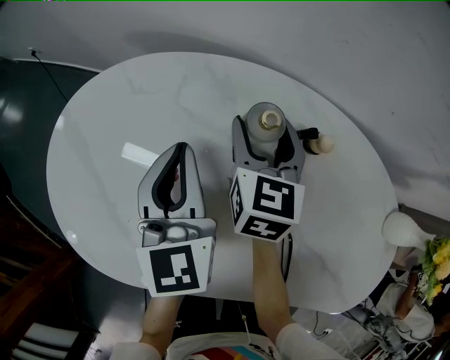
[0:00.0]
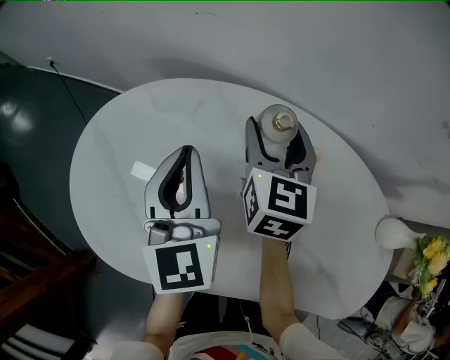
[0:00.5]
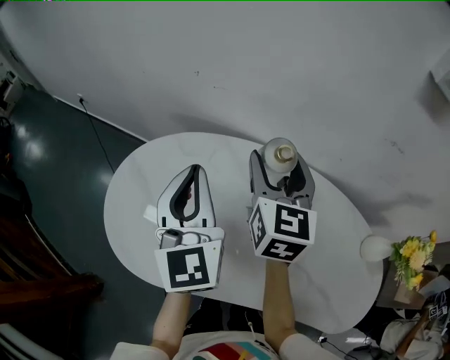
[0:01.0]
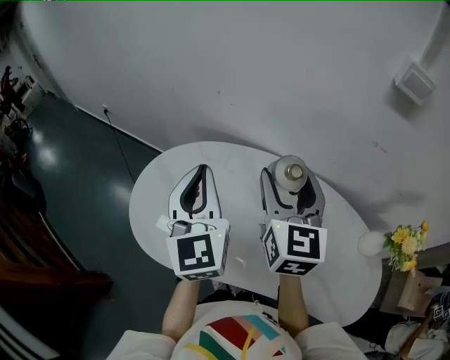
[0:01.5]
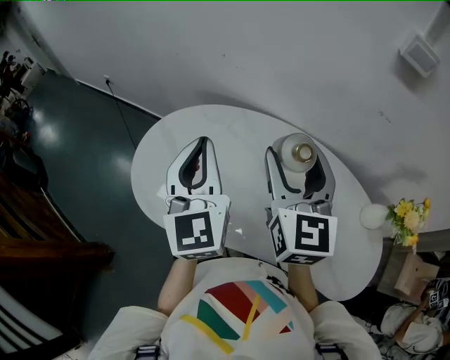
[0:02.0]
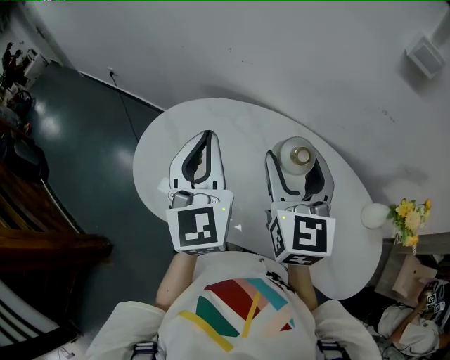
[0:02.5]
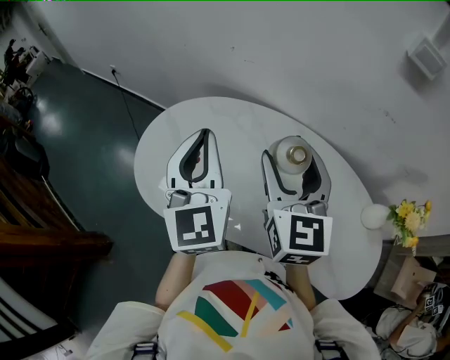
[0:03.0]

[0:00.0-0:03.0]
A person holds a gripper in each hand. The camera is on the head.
0:00.0 to 0:01.5: Both grippers move upward and backward, some 30 cm. The right gripper turns by roughly 20 degrees.
0:01.5 to 0:03.0: Both grippers move backward, roughly 5 cm.

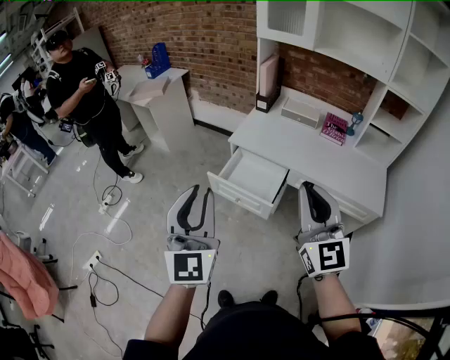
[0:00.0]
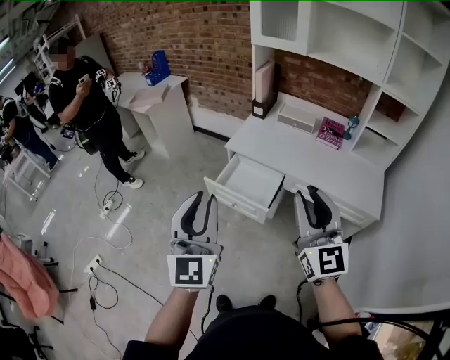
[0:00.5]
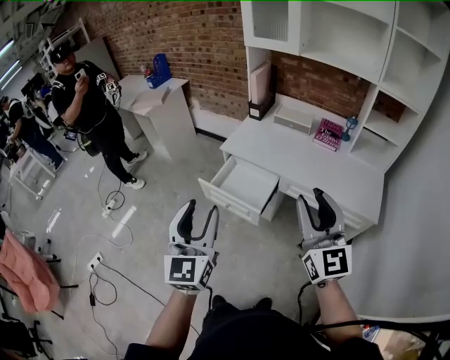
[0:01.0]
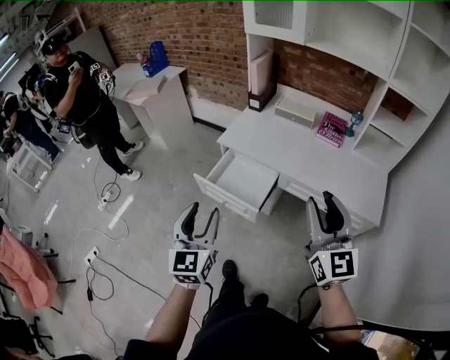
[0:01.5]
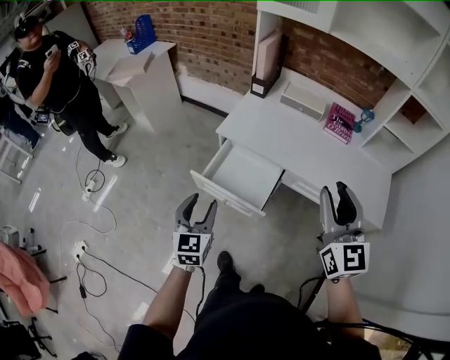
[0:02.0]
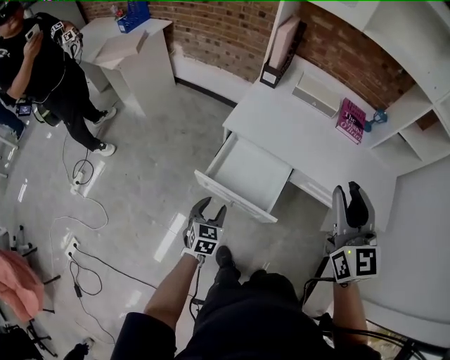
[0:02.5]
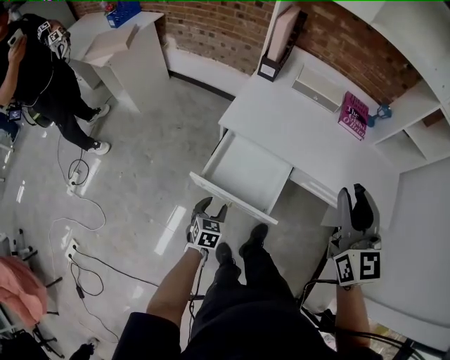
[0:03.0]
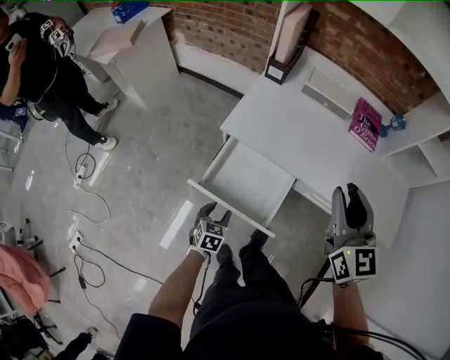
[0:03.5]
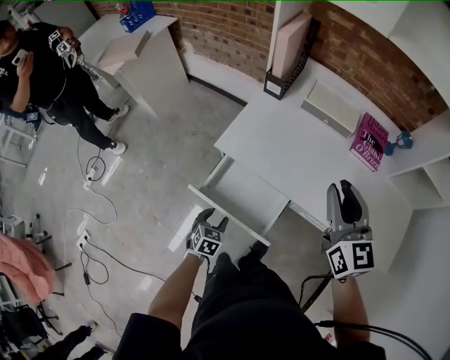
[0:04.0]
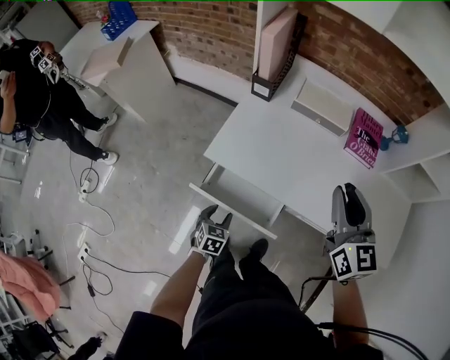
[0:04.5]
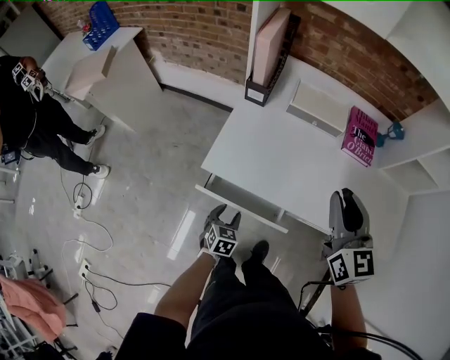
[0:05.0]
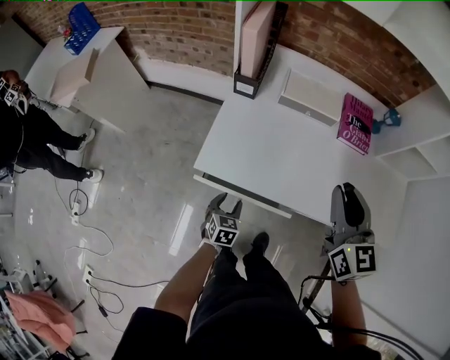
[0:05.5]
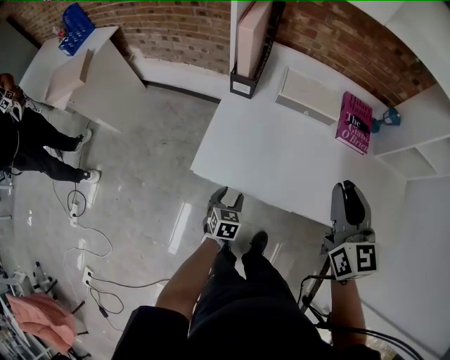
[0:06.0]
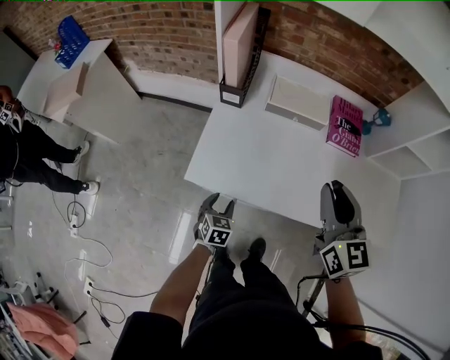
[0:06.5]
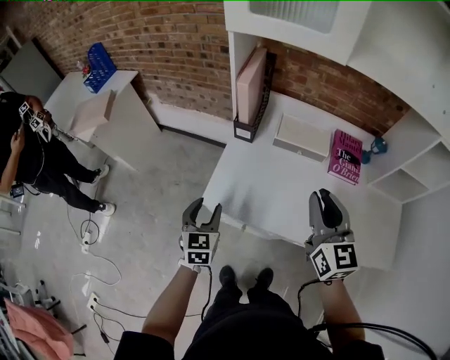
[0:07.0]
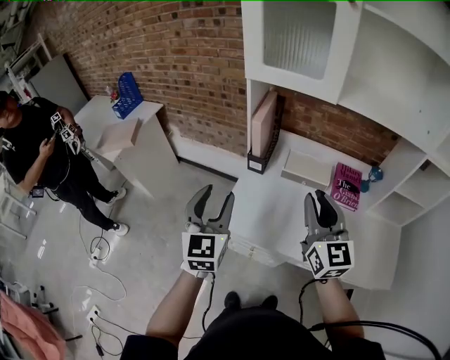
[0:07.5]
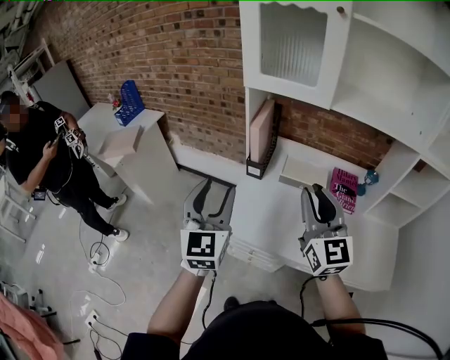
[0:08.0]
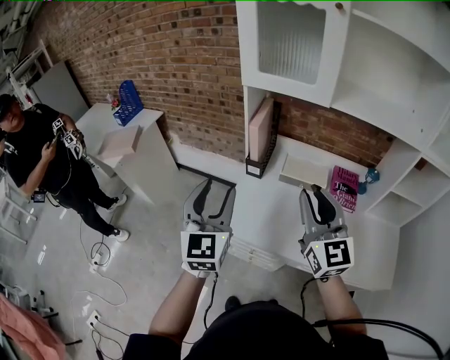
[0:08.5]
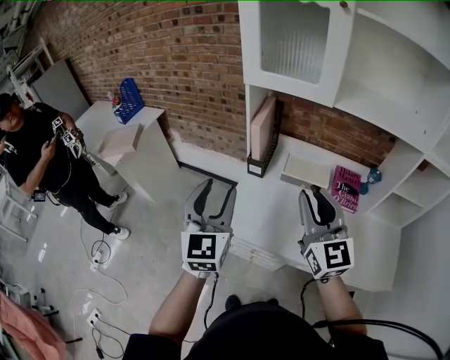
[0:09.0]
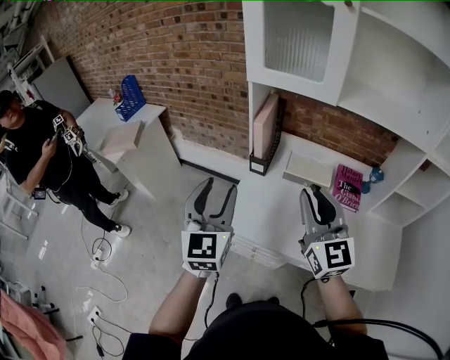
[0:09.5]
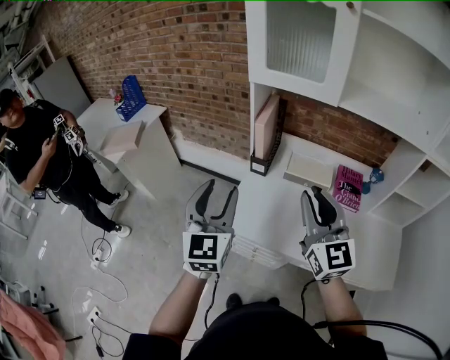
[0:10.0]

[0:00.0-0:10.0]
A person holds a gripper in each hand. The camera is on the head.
0:00.0 to 0:02.0: The right gripper travels forward, to the right and downward by roughly 20 cm, and opens, while the left gripper is displaced downward and forward by approximately 30 cm, turns by approximately 30 degrees, and opens.
0:02.0 to 0:04.0: The right gripper shifts approximately 25 cm forward. Meanwhile the left gripper heads downward and forward, covering roughly 30 cm, and tips its fingers downward by roughly 40 degrees.
0:04.0 to 0:06.0: The right gripper moves forward, about 5 cm. The left gripper goes approximately 20 cm forward.
0:06.0 to 0:08.0: The left gripper shifts roughly 50 cm upward, and tilts its fingers approximately 50 degrees upward. Meanwhile the right gripper is displaced upward and to the left by about 20 cm, and turns by approximately 20 degrees.
0:08.0 to 0:10.0: There are only small adjustments of the grippers.

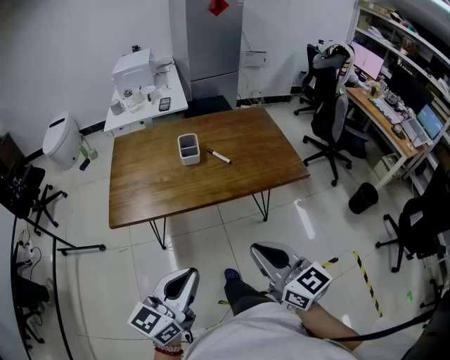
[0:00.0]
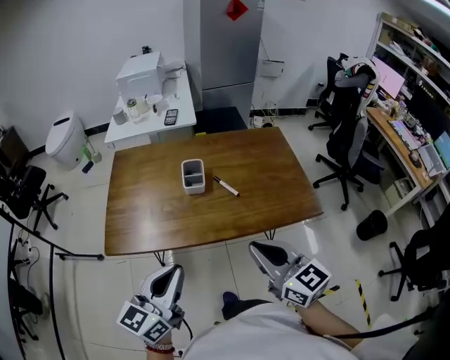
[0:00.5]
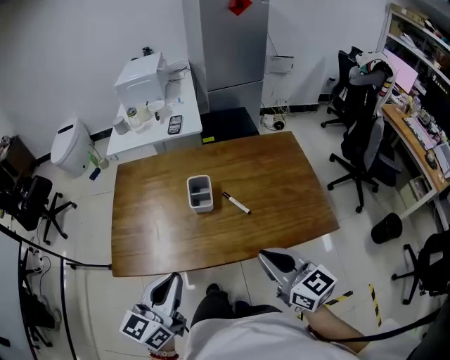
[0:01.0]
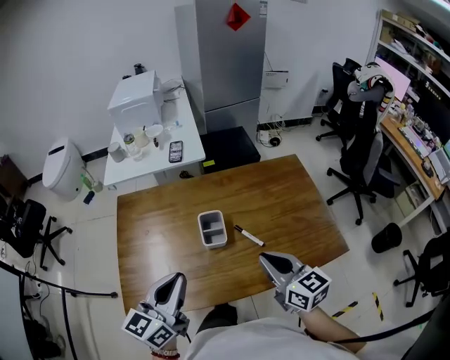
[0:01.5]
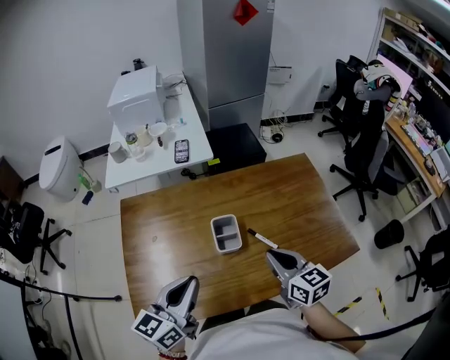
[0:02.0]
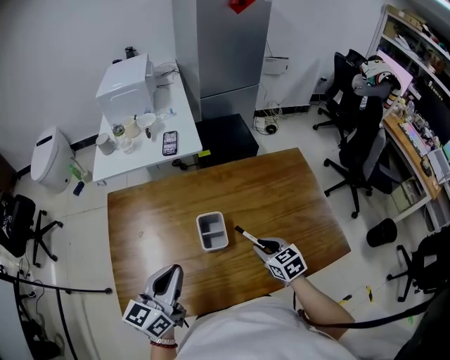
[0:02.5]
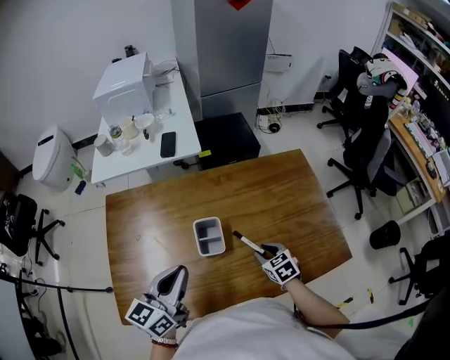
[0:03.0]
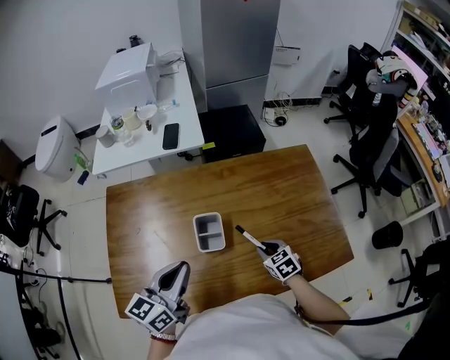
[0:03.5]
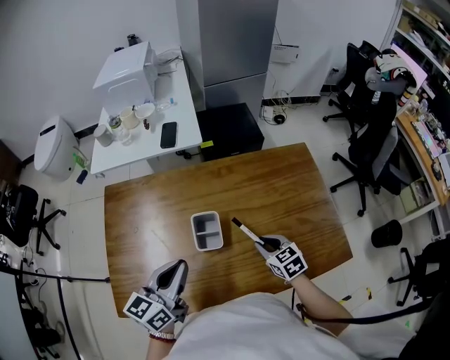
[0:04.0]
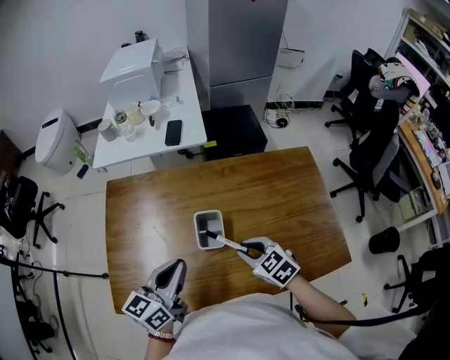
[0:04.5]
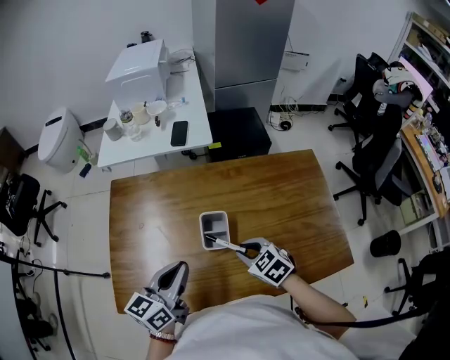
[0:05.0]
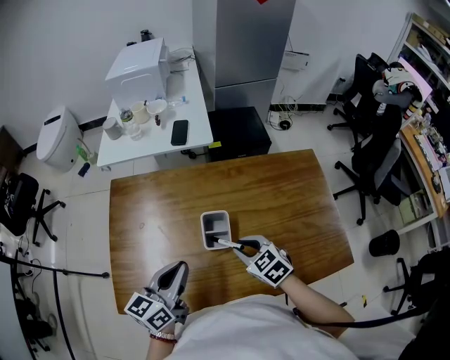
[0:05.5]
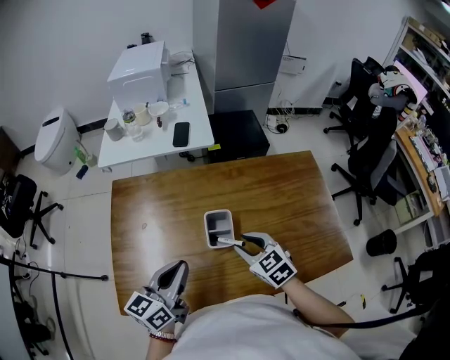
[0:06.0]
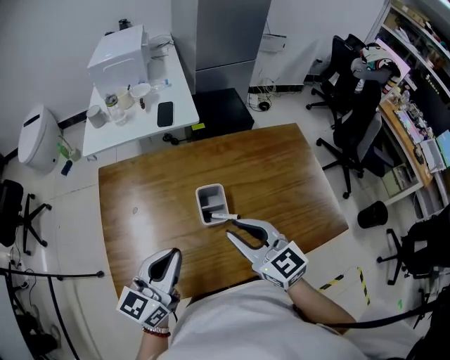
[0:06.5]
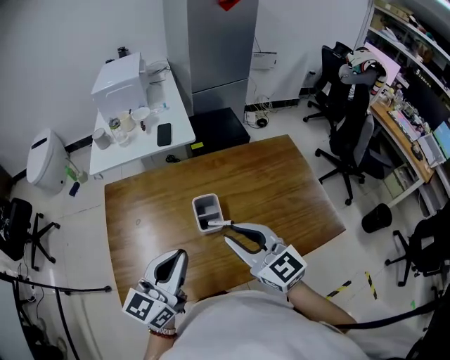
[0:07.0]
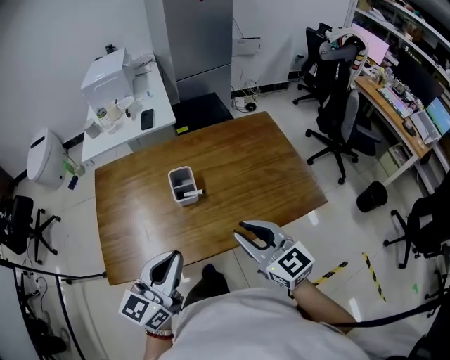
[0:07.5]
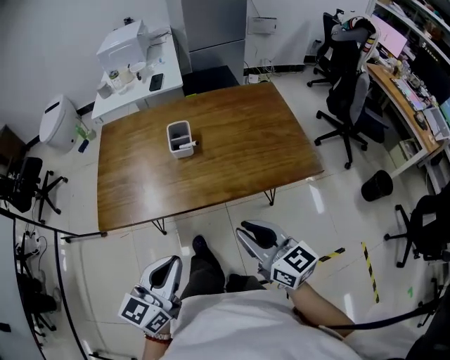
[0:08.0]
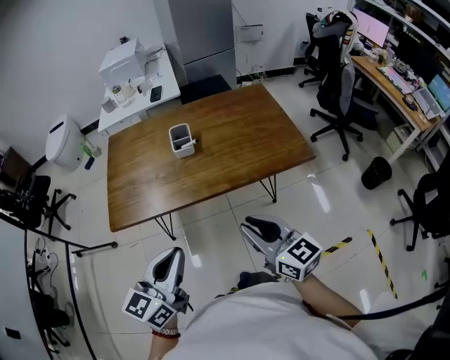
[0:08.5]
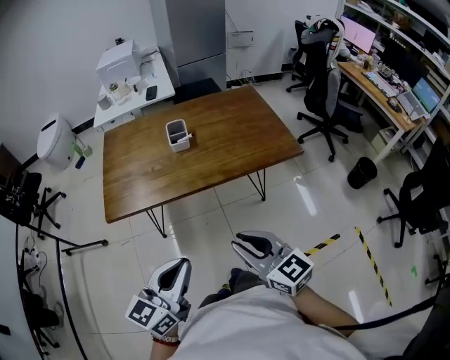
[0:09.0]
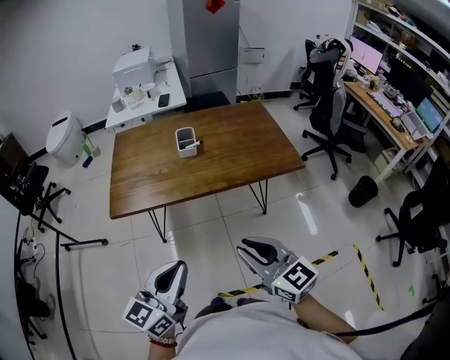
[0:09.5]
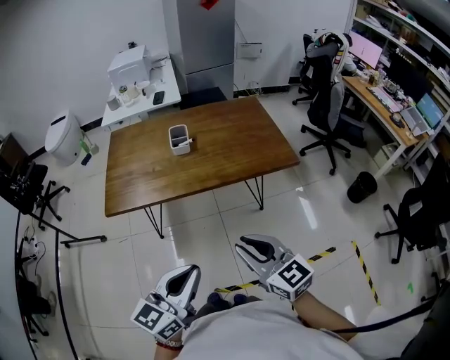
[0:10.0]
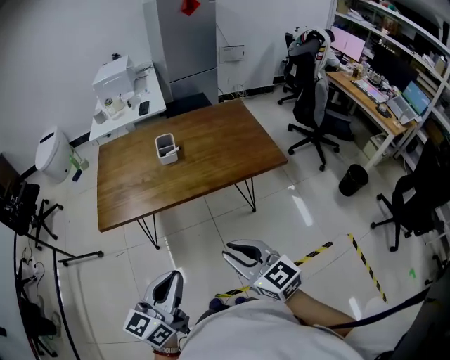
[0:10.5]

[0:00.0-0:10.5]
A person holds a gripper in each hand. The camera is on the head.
0:00.0 to 0:02.0: The pair of grippers is taken forward, approximately 40 cm.
0:02.0 to 0:04.0: The right gripper is displaced downward and forward by approximately 20 cm, and swivels approximately 30 degrees; the left gripper goes approximately 5 cm forward.
0:04.0 to 0:06.5: The right gripper heads upward and to the left, covering about 25 cm, and turns by approximately 30 degrees; the left gripper is displaced to the left by roughly 5 cm.
0:06.5 to 0:08.5: The left gripper moves backward, roughly 35 cm, while the right gripper travels backward and to the right by about 40 cm.
0:08.5 to 0:10.5: Both grippers move backward, about 10 cm.

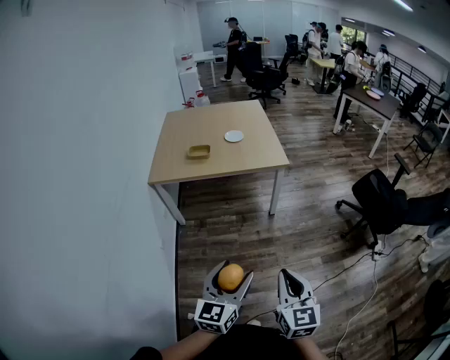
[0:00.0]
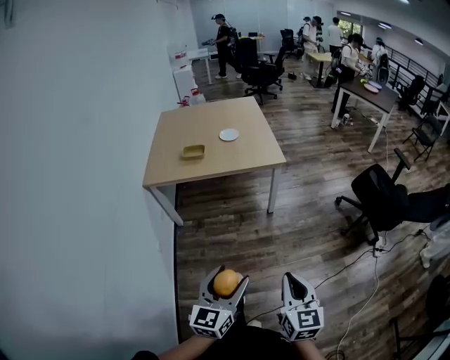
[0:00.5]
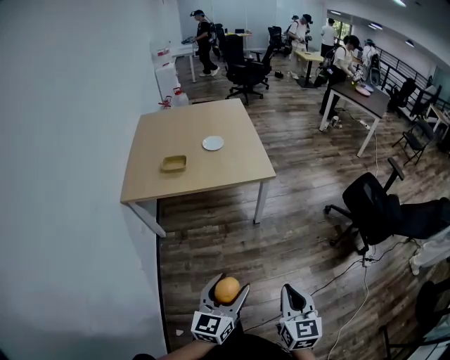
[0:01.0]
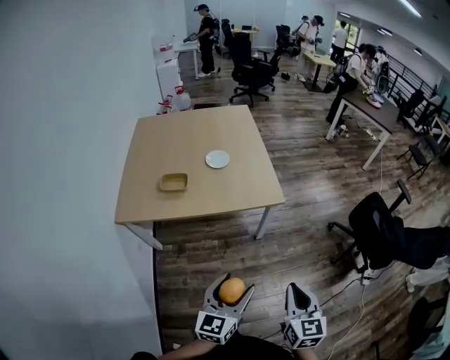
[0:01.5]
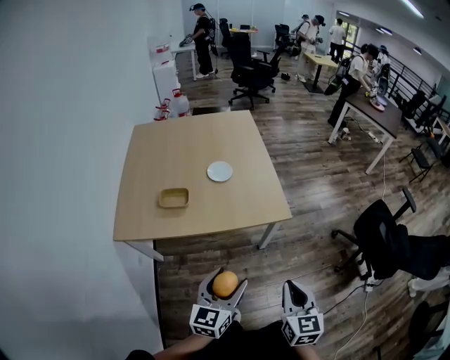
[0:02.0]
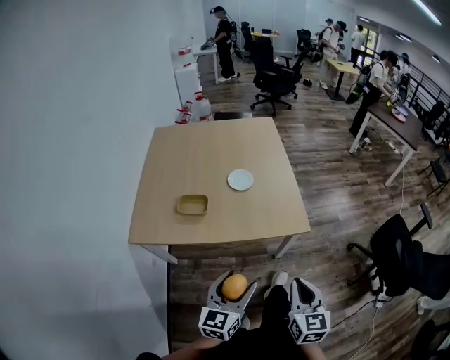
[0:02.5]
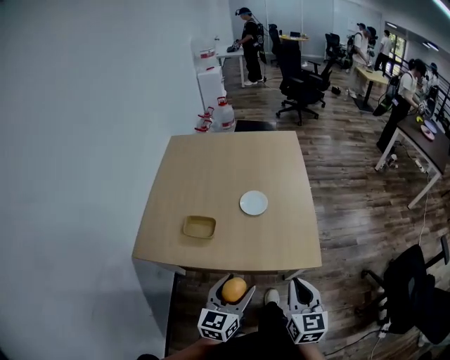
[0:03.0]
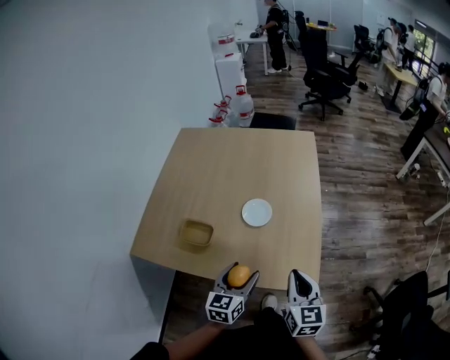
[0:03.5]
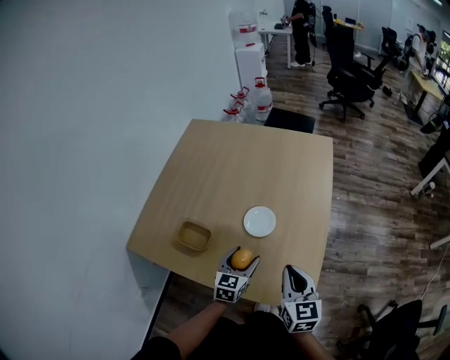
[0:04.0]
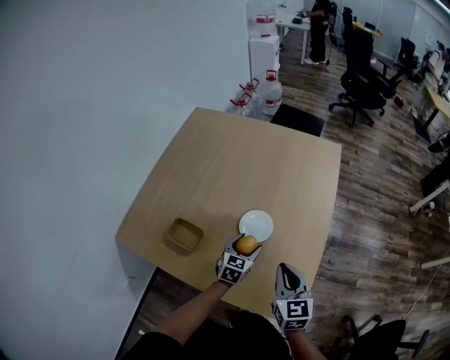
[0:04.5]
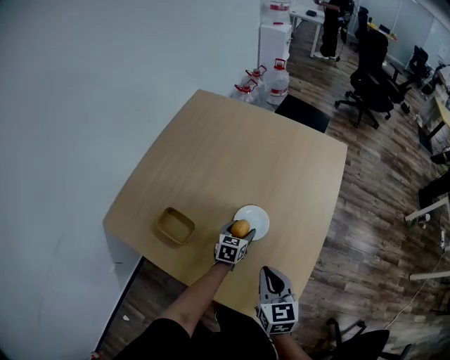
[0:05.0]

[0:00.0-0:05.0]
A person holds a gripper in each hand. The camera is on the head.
0:00.0 to 0:02.5: The two grippers travel together, forward, some 50 cm.
0:02.5 to 0:05.0: Both grippers are carried approximately 50 cm. The right gripper swivels roughly 40 degrees, while the left gripper turns by about 40 degrees.
